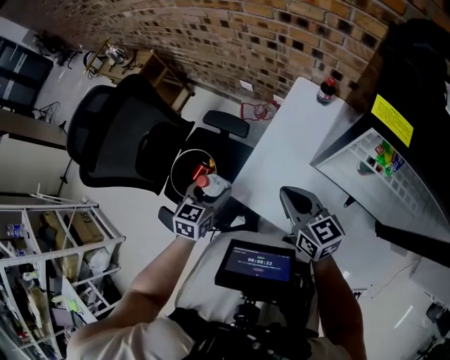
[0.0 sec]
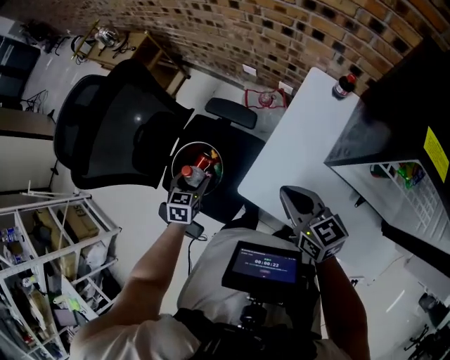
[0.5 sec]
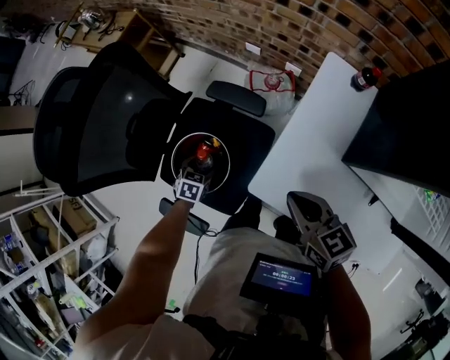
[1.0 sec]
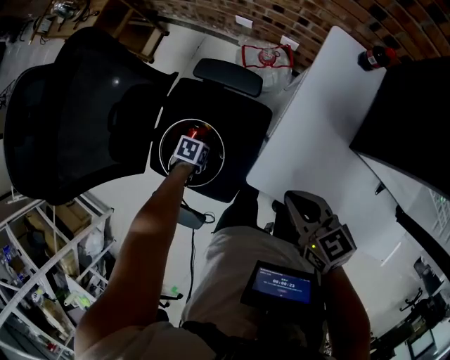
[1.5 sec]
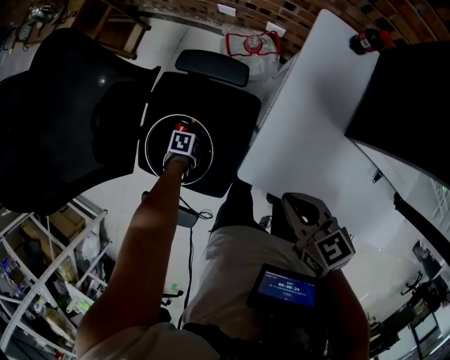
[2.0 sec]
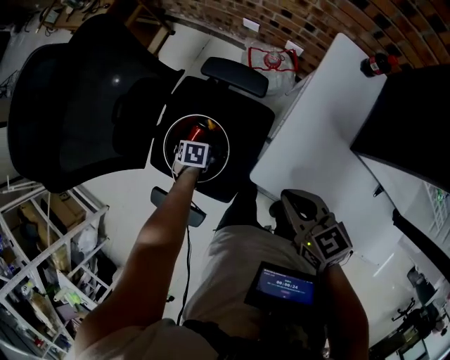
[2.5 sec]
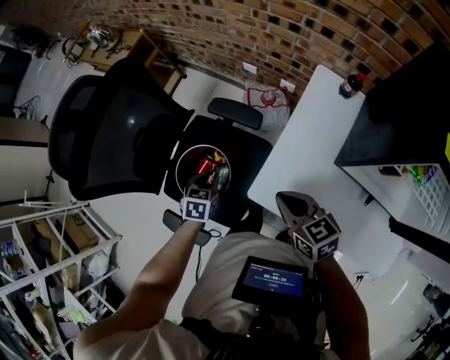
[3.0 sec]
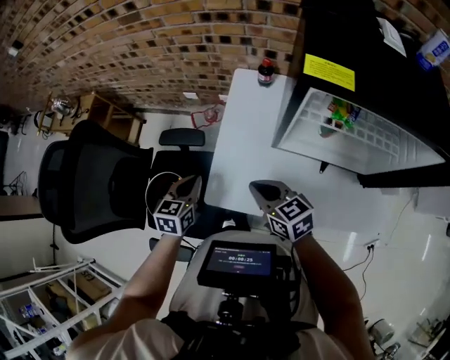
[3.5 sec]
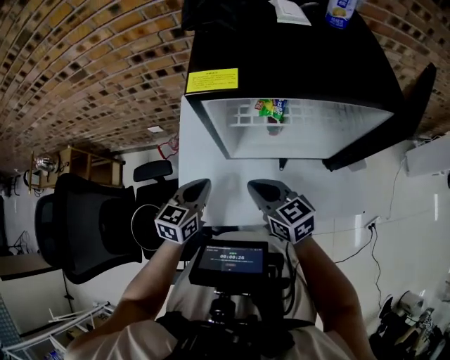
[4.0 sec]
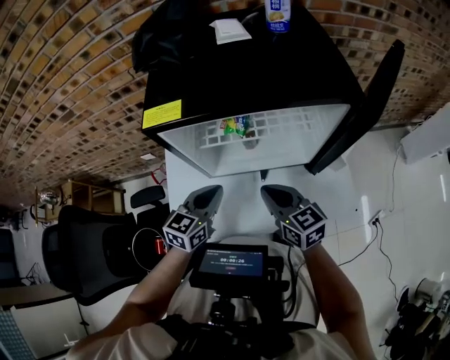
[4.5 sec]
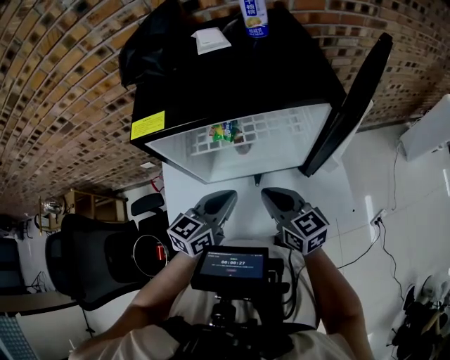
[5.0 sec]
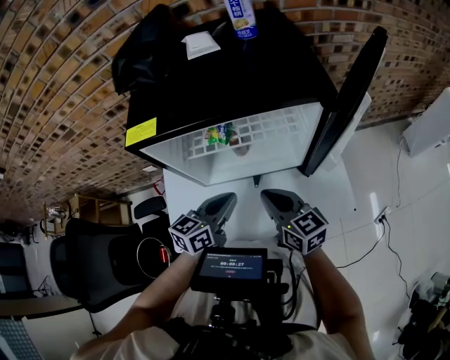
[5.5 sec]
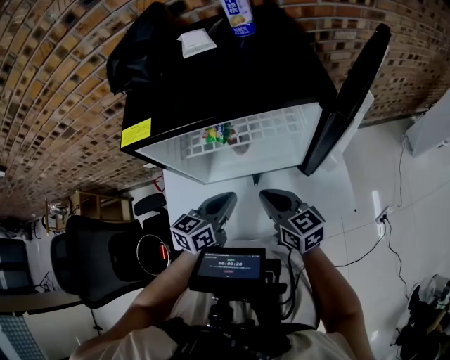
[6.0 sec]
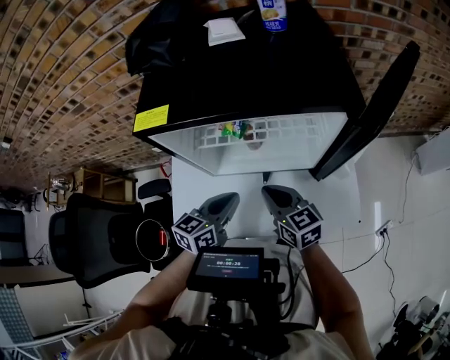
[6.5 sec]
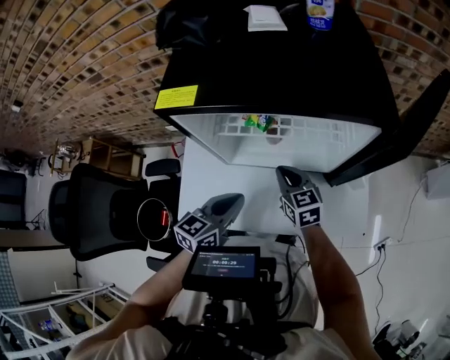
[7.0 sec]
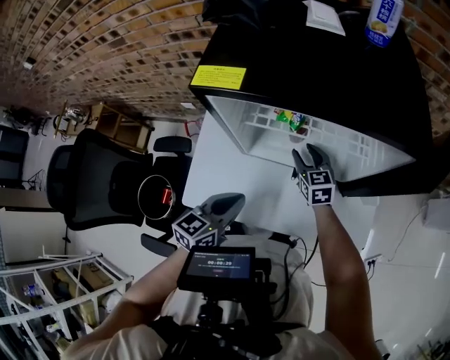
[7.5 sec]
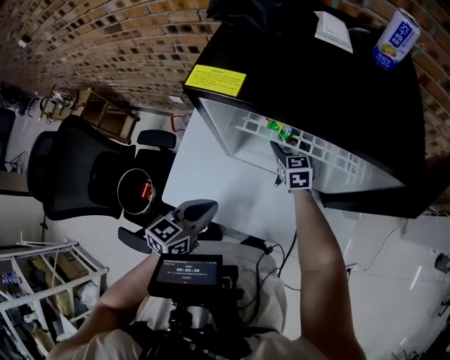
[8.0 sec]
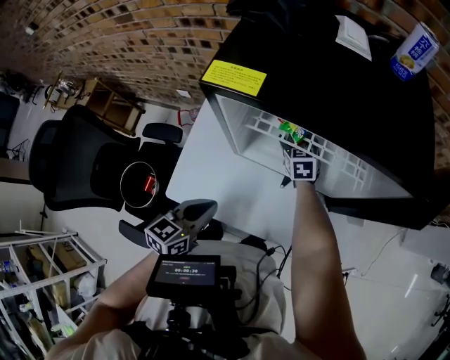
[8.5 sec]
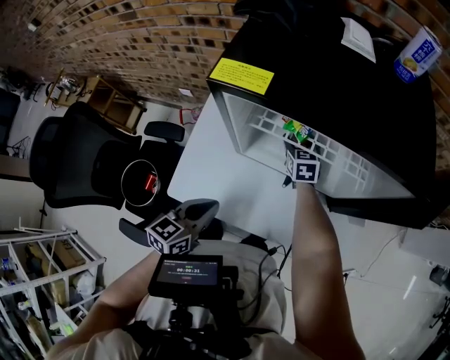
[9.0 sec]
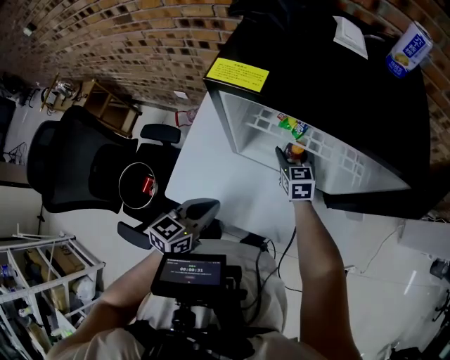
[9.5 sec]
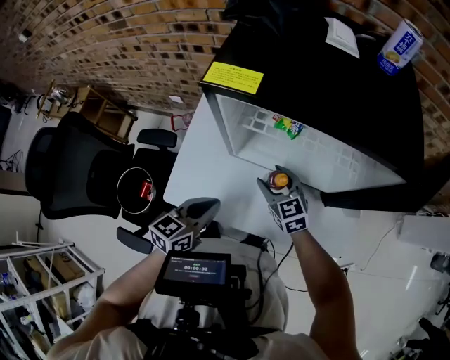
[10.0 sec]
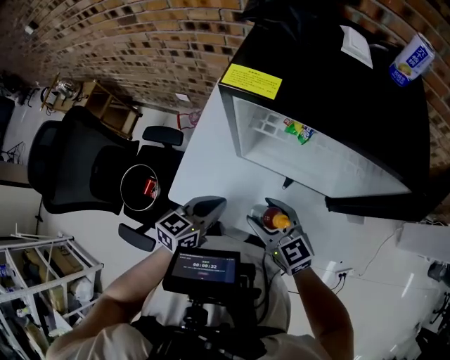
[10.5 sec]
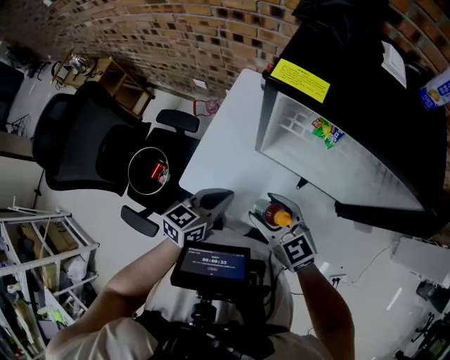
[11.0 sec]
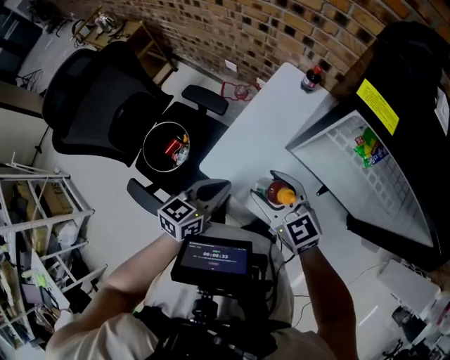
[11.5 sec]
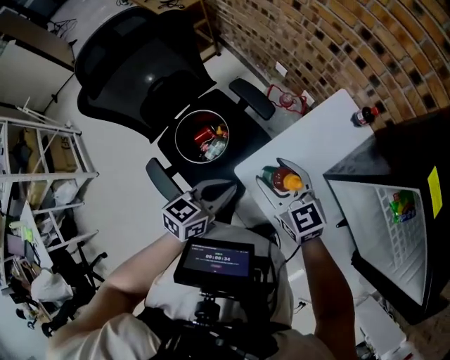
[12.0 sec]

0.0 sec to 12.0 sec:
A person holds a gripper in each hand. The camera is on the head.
0.0 sec to 2.0 sec: The left gripper heads downward, covering about 35 cm, and points its fingers approximately 40 degrees further downward, while the right gripper moves downward, some 10 cm, and turns by approximately 20 degrees.
2.0 sec to 4.0 sec: The right gripper moves roughly 25 cm, and changes its angle by roughly 30 degrees; the left gripper moves upward, approximately 40 cm, tilts its fingers roughly 40 degrees upward, and closes.
4.0 sec to 6.0 sec: Both grippers travel together to the right, some 15 cm.
6.0 sec to 8.0 sec: The right gripper is displaced forward and downward by some 25 cm, swivels approximately 30 degrees, and opens its fingers. The left gripper moves to the left and backward, approximately 10 cm.
8.0 sec to 10.0 sec: The right gripper heads backward, covering about 15 cm.
10.0 sec to 12.0 sec: The left gripper moves approximately 25 cm, and rotates some 30 degrees; the right gripper changes place by roughly 35 cm, and changes its angle by roughly 40 degrees.

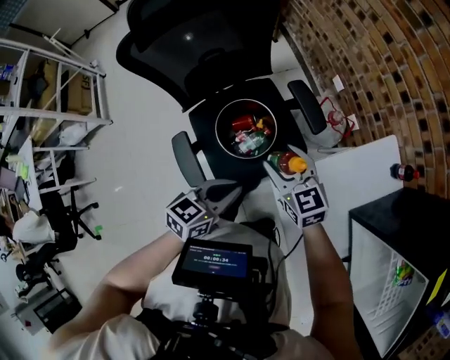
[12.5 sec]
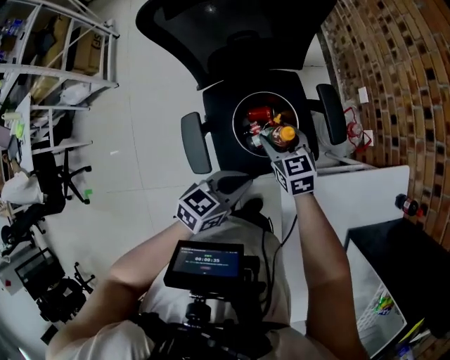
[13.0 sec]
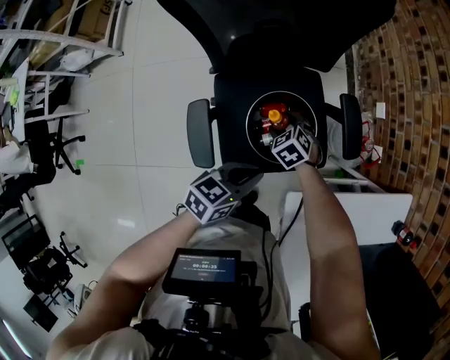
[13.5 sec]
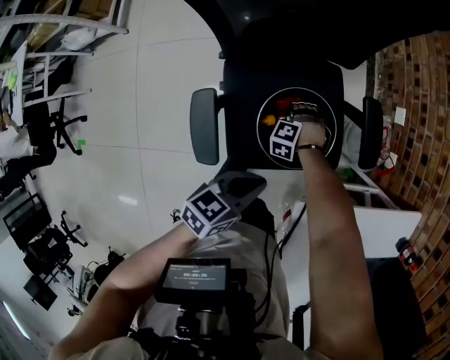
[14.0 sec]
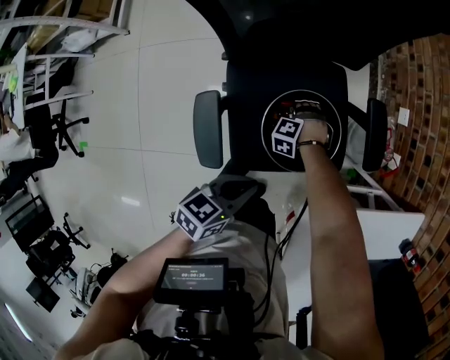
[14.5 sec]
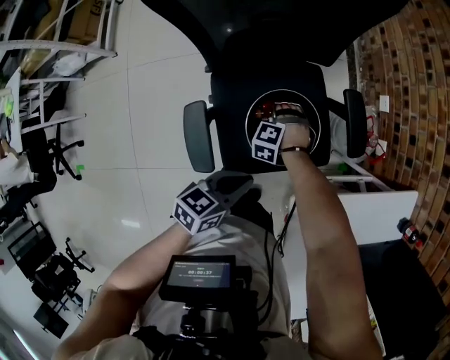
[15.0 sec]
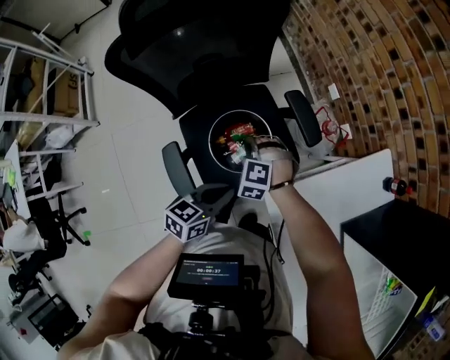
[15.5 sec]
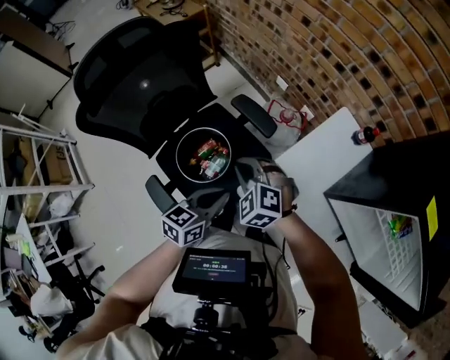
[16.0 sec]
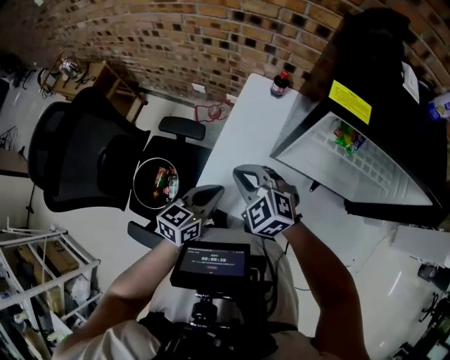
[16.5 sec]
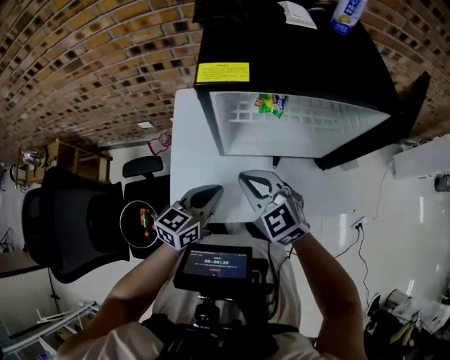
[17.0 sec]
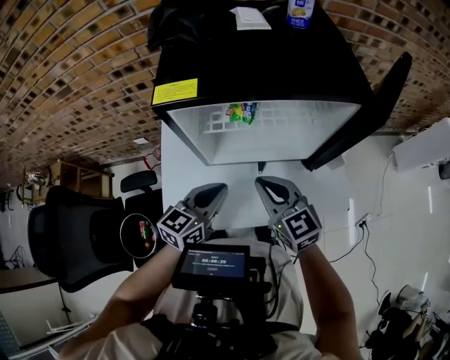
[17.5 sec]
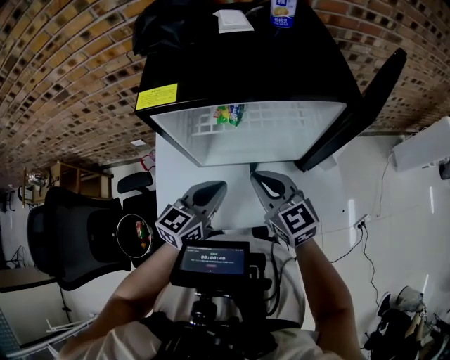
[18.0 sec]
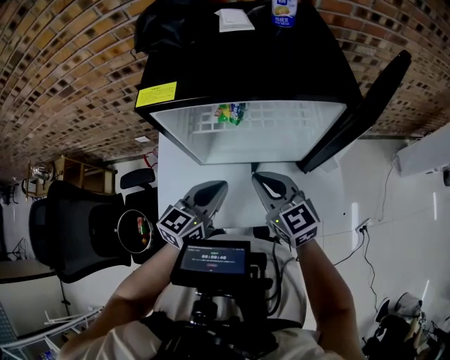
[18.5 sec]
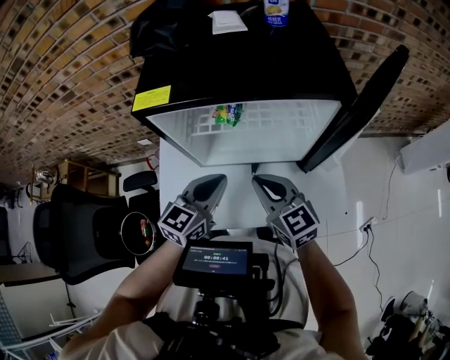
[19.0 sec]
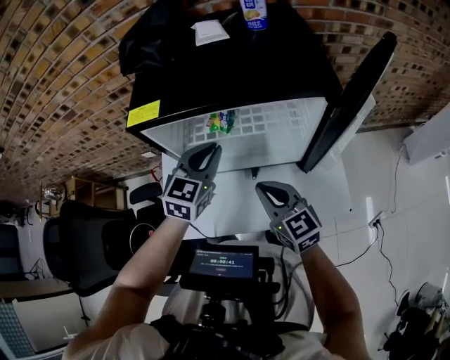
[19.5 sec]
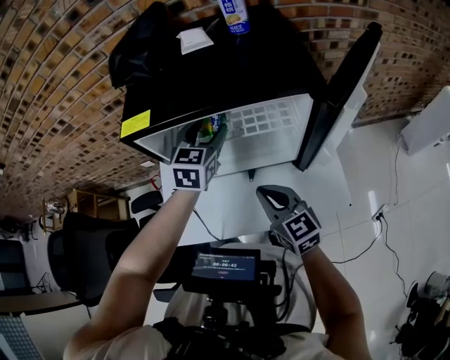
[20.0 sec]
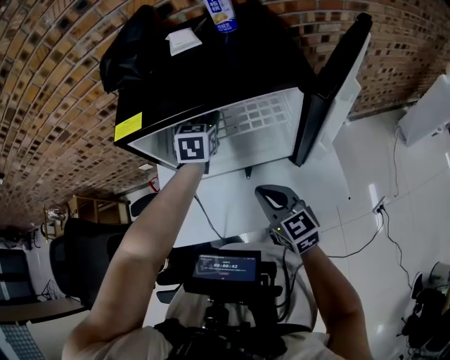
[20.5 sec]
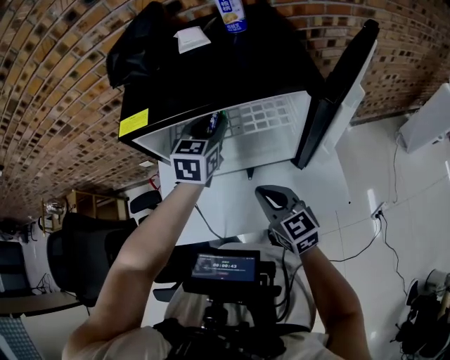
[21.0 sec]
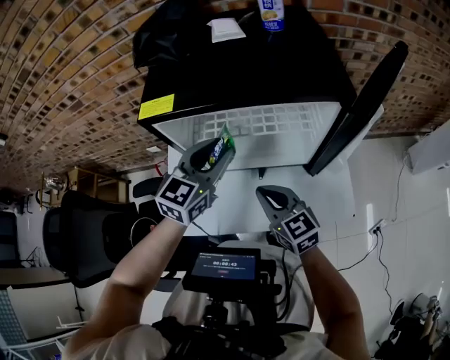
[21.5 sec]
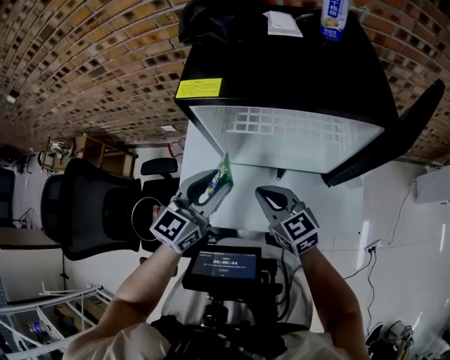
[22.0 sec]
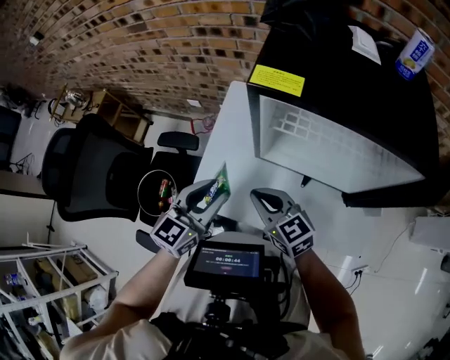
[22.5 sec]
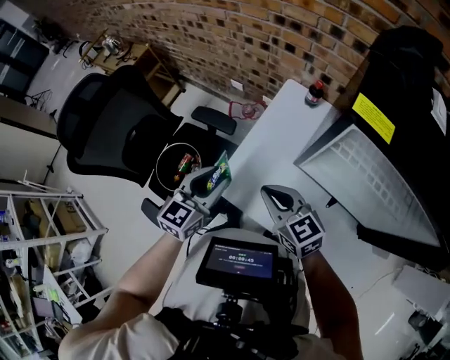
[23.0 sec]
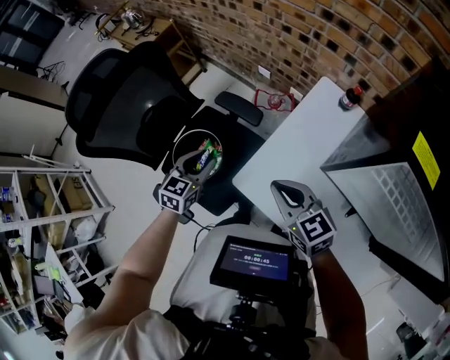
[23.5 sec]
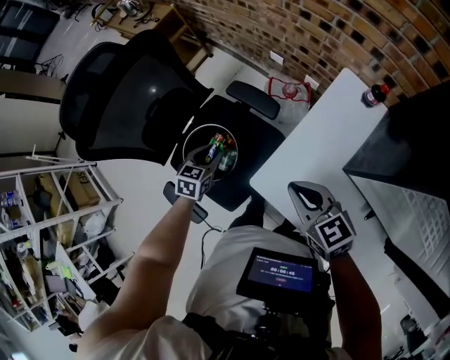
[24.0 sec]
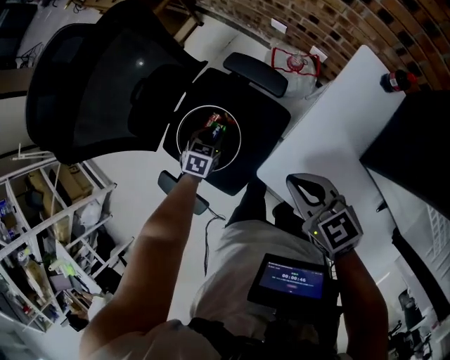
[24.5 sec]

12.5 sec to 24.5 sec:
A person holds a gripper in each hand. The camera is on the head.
12.5 sec to 14.5 sec: The left gripper shifts approximately 15 cm downward, and swivels some 20 degrees. Meanwhile the right gripper heads downward, covering about 40 cm, and tilts its fingers about 50 degrees downward.
14.5 sec to 16.5 sec: The left gripper shifts by roughly 30 cm, and changes its angle by about 60 degrees. Meanwhile the right gripper travels upward by approximately 40 cm, twists approximately 90 degrees clockwise, seen from behind, and closes up.
16.5 sec to 18.5 sec: The right gripper shifts by approximately 30 cm, and rotates about 50 degrees. Meanwhile the left gripper shifts by approximately 25 cm, and turns by about 30 degrees.
18.5 sec to 20.5 sec: The right gripper changes place by approximately 5 cm; the left gripper is displaced forward by roughly 25 cm, changes its angle by approximately 30 degrees, and opens up.
20.5 sec to 22.5 sec: The left gripper shifts approximately 35 cm to the left and backward, and changes its angle by roughly 20 degrees. Meanwhile the right gripper travels to the left by approximately 20 cm, and turns by about 30 degrees.
22.5 sec to 24.5 sec: The left gripper shifts some 35 cm downward, and tips its fingers downward by about 40 degrees, while the right gripper ends up some 25 cm from where it was, and rotates approximately 30 degrees.

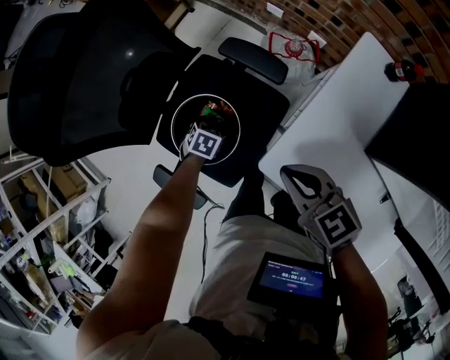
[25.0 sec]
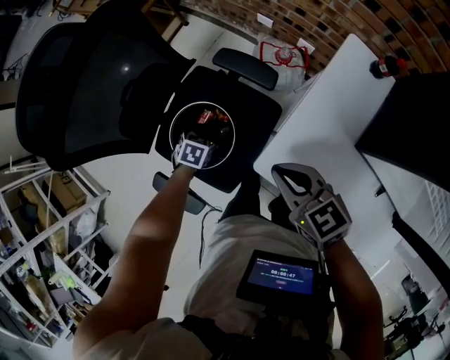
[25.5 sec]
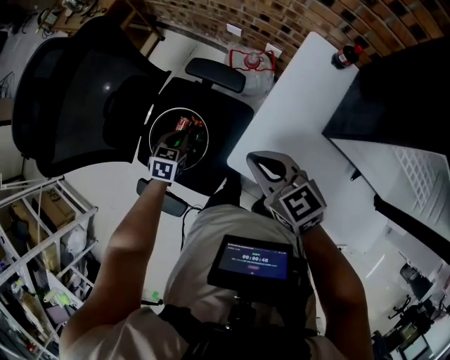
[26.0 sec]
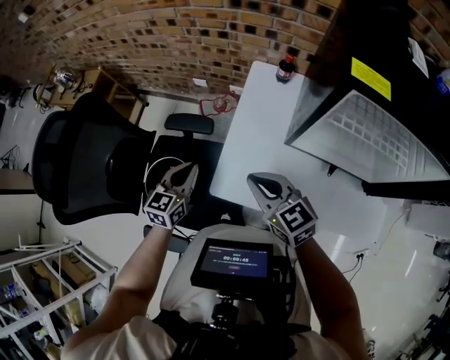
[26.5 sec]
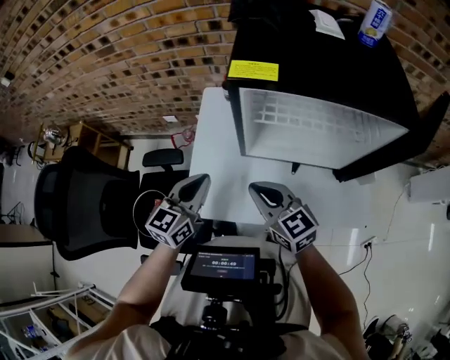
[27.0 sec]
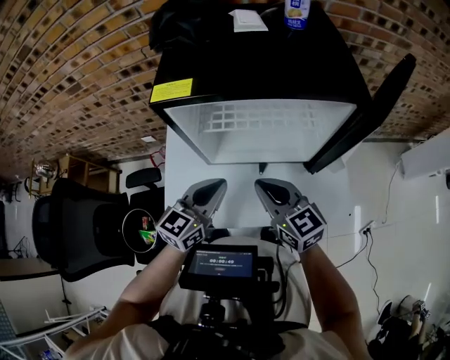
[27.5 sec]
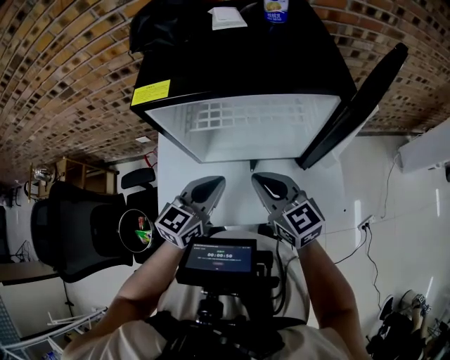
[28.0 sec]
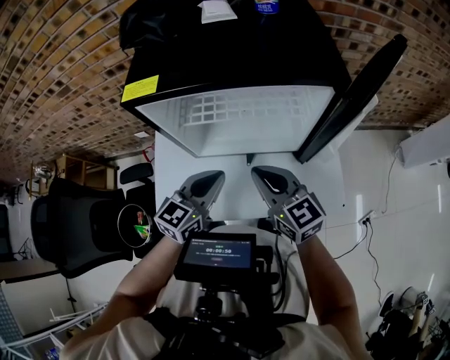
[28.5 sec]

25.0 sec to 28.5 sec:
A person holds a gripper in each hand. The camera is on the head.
25.0 sec to 27.0 sec: The left gripper is displaced upward by roughly 40 cm, tilts its fingers roughly 60 degrees upward, and closes its fingers. Meanwhile the right gripper ends up some 30 cm from where it was, and turns by some 40 degrees.
27.0 sec to 28.5 sec: Both grippers travel together to the right, roughly 20 cm.
